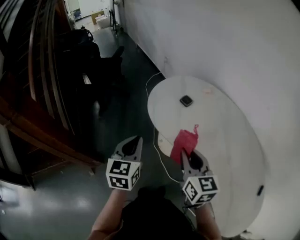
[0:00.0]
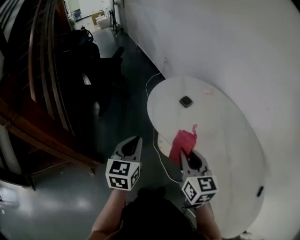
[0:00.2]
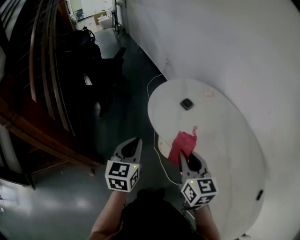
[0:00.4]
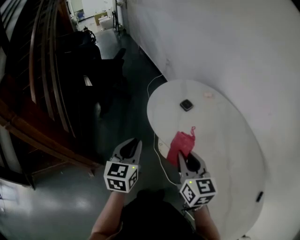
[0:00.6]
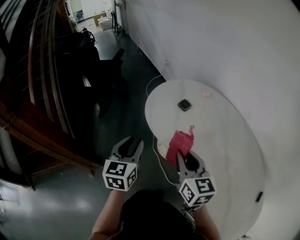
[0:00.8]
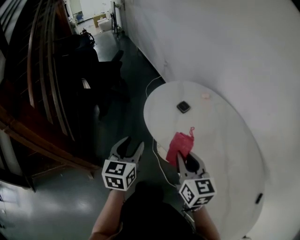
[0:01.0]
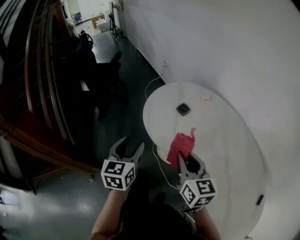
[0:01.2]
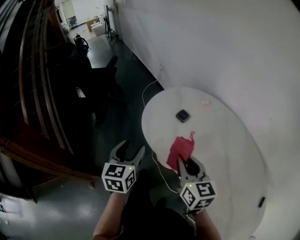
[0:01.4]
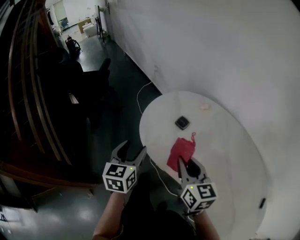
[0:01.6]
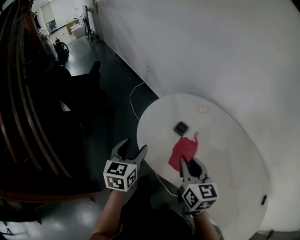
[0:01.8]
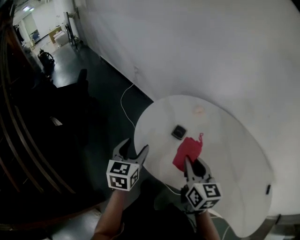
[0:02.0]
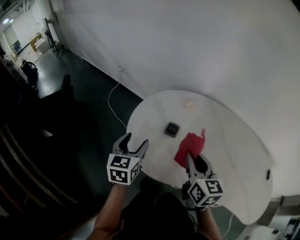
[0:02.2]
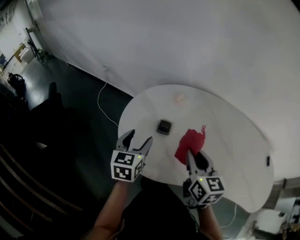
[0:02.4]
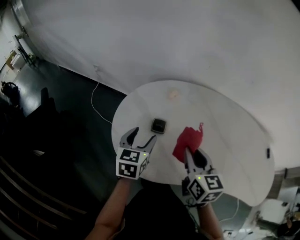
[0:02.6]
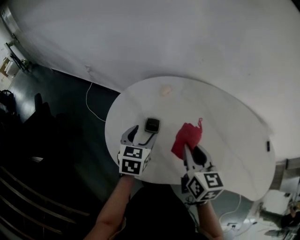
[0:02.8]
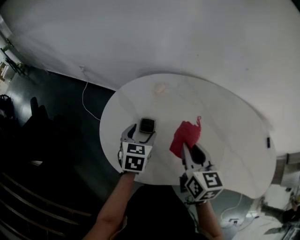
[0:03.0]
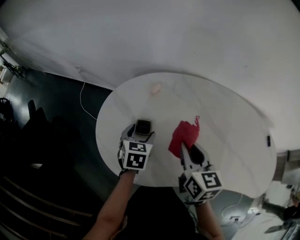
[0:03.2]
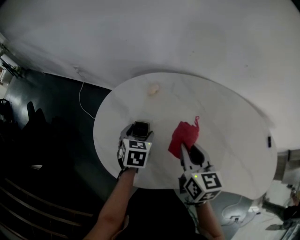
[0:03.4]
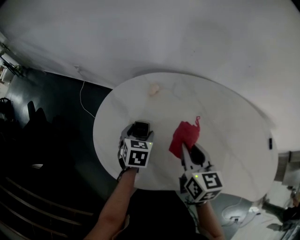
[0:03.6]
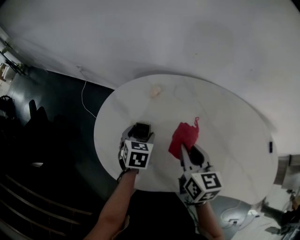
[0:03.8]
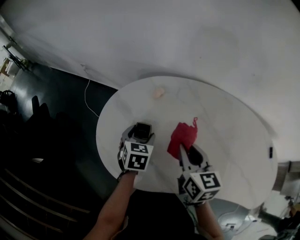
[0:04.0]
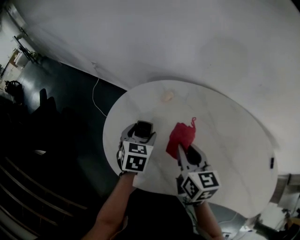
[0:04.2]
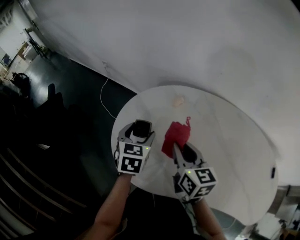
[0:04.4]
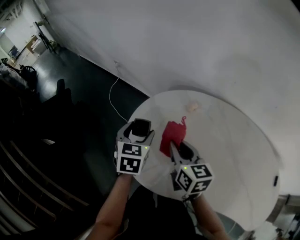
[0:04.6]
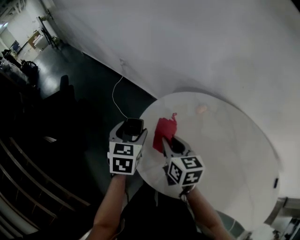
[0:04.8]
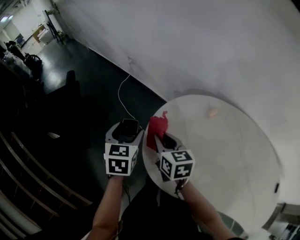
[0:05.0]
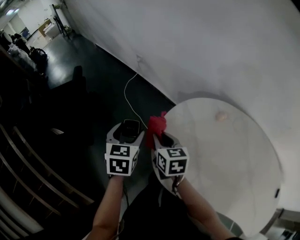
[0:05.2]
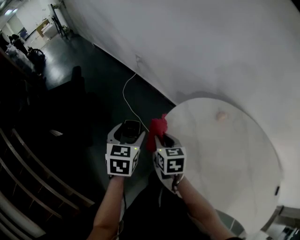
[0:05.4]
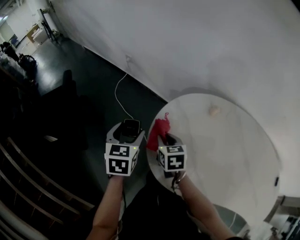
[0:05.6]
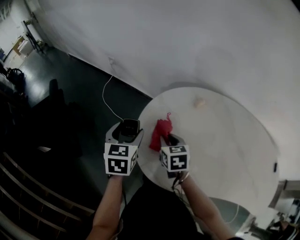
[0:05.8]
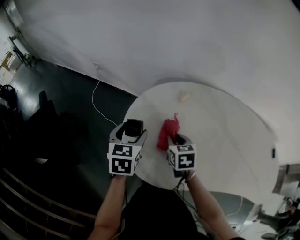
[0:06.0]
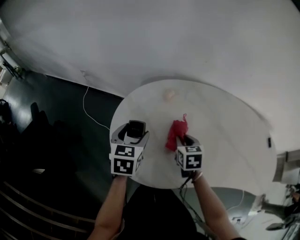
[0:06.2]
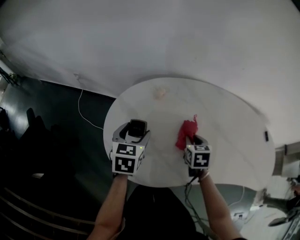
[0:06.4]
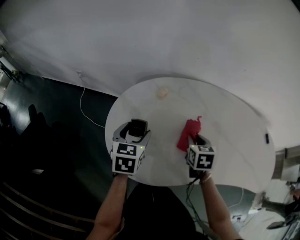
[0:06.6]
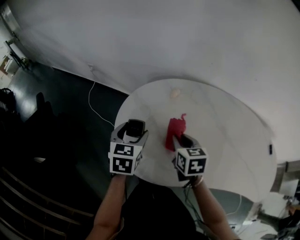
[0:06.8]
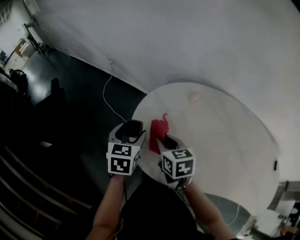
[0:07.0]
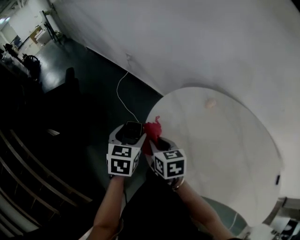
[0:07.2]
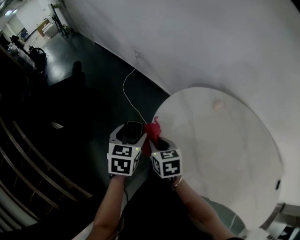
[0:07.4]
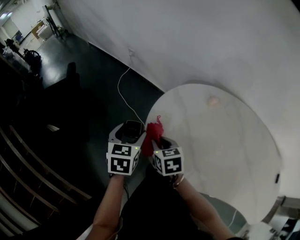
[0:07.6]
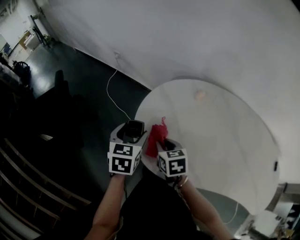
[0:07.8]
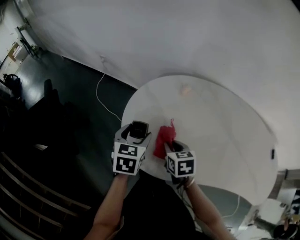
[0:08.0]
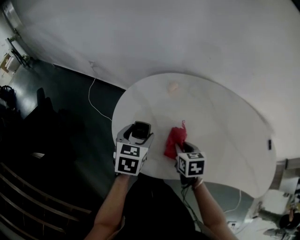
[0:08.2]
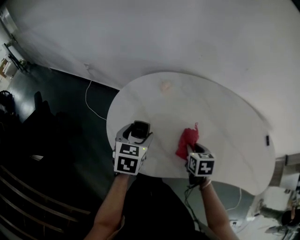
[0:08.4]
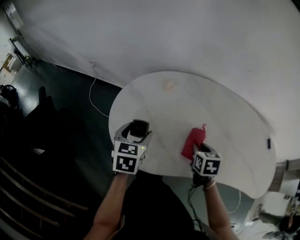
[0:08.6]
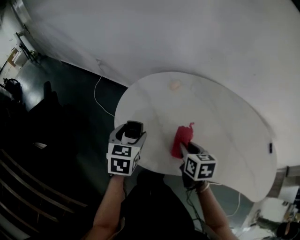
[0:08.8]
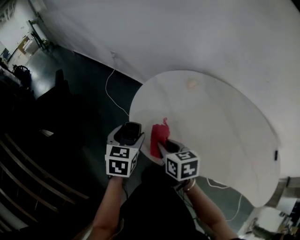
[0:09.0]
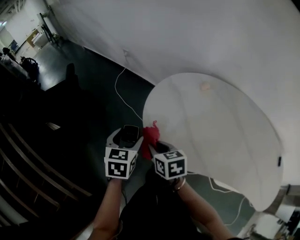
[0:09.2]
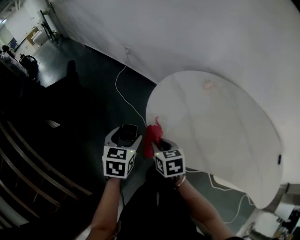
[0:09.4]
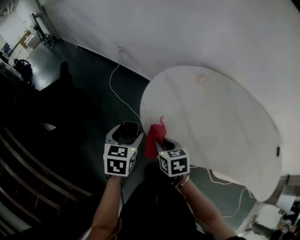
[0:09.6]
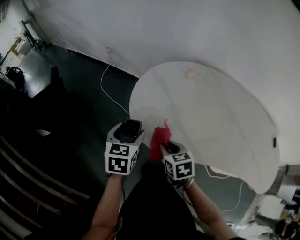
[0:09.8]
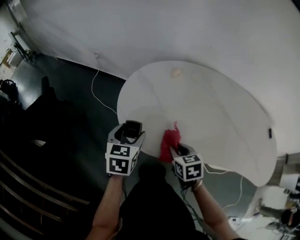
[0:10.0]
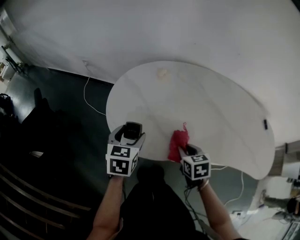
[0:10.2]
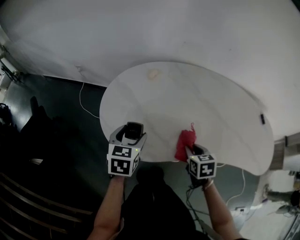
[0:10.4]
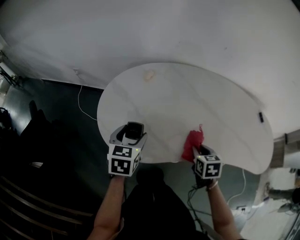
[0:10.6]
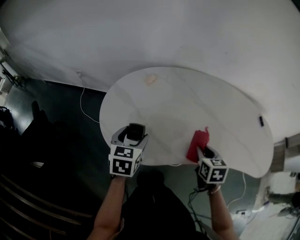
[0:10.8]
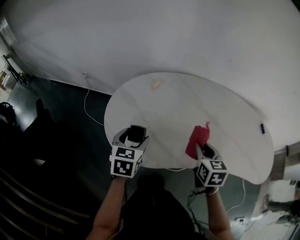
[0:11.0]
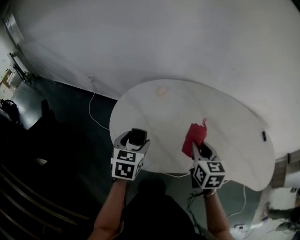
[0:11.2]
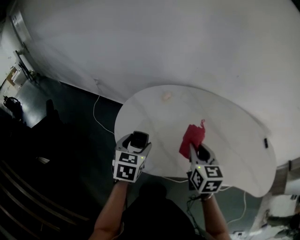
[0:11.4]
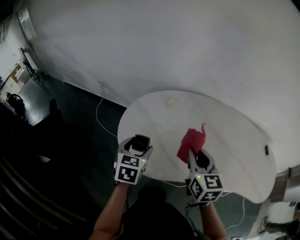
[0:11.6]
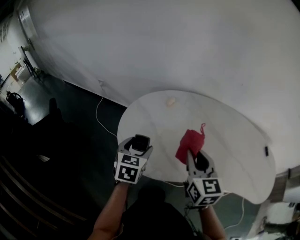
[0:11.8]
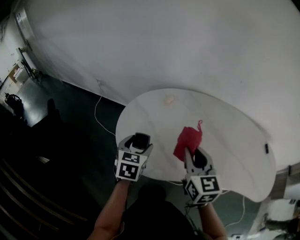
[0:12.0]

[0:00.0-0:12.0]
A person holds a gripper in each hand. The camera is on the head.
0.0 to 1.6 s: Both grippers move forward, approximately 15 cm. The left gripper opens its fingers.
1.6 to 3.0 s: The left gripper moves about 25 cm, and turns by approximately 40 degrees. Meanwhile the right gripper moves approximately 15 cm, and swivels about 40 degrees.
3.0 to 4.4 s: The left gripper shifts approximately 5 cm to the left. The right gripper heads to the left and forward, covering approximately 10 cm.
4.4 to 6.0 s: The right gripper heads downward, covering approximately 10 cm, and turns by approximately 30 degrees.
6.0 to 7.6 s: The left gripper ends up about 15 cm from where it was. The right gripper ends up some 20 cm from where it was, and rotates approximately 20 degrees.
9.0 to 10.4 s: The left gripper changes place by some 10 cm, while the right gripper shifts by approximately 25 cm, and rotates roughly 30 degrees.
10.4 to 12.0 s: The right gripper moves upward and to the left, some 20 cm, and angles its fingers upward, by approximately 40 degrees.

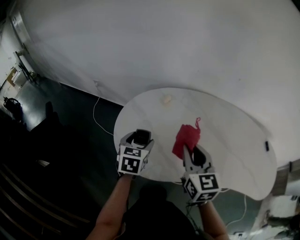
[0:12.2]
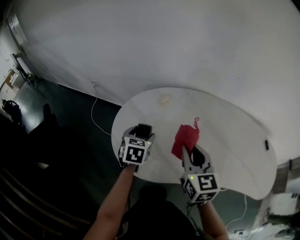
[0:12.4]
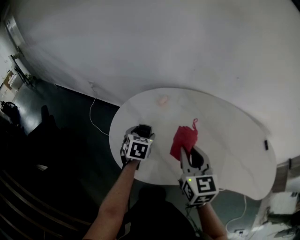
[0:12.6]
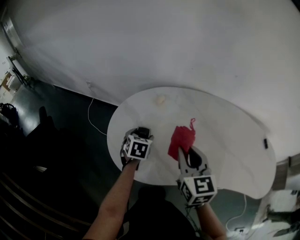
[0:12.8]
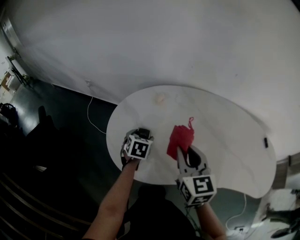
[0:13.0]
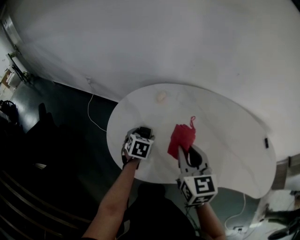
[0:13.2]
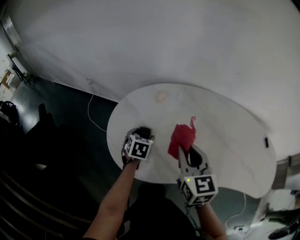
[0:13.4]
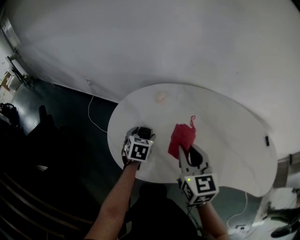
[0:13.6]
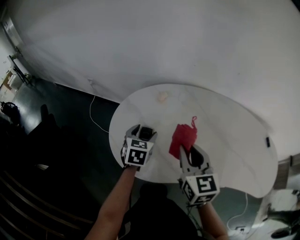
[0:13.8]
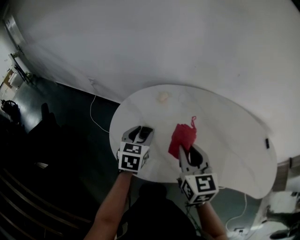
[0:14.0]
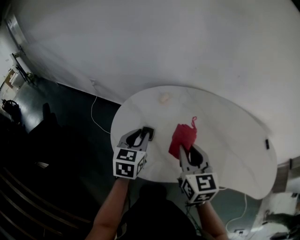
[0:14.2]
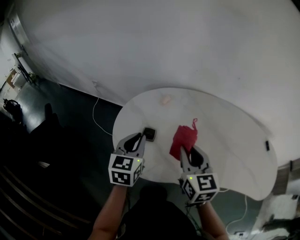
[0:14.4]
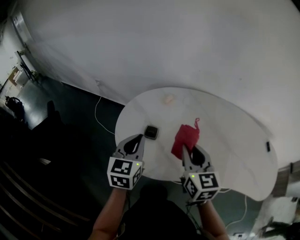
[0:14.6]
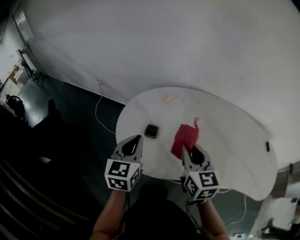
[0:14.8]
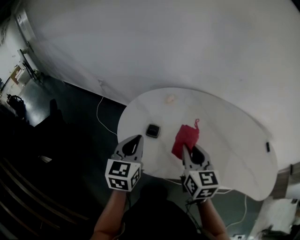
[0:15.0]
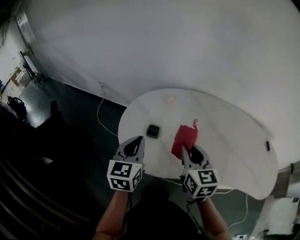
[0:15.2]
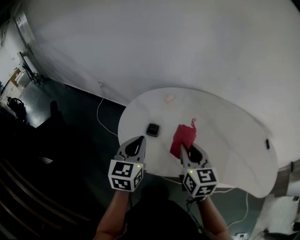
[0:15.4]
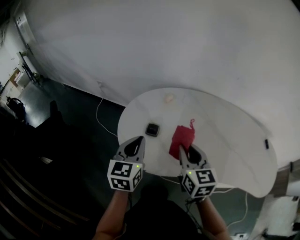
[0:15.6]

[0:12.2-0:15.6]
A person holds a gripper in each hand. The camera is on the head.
12.2 to 13.8 s: The left gripper moves about 10 cm downward and comes back.
13.8 to 15.6 s: The left gripper heads upward and backward, covering roughly 15 cm, changes its angle by approximately 20 degrees, and closes its fingers.

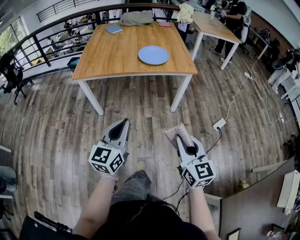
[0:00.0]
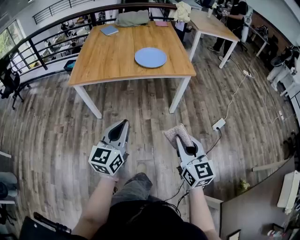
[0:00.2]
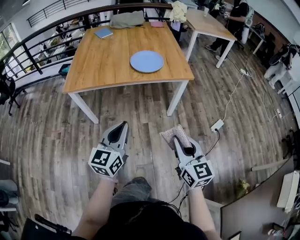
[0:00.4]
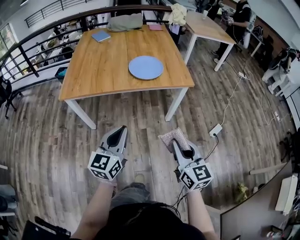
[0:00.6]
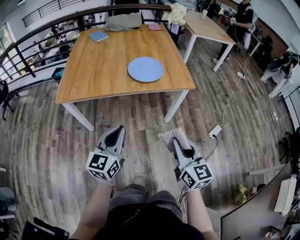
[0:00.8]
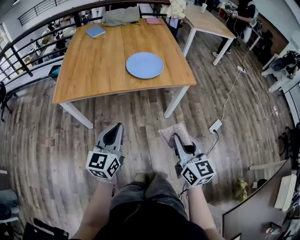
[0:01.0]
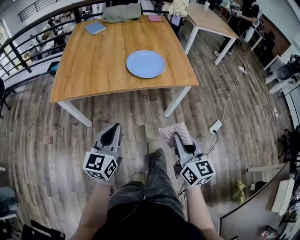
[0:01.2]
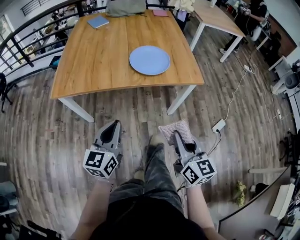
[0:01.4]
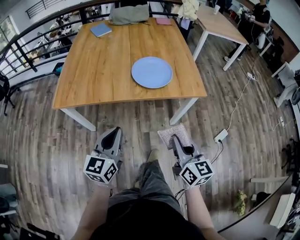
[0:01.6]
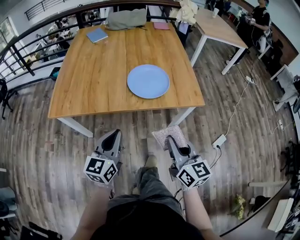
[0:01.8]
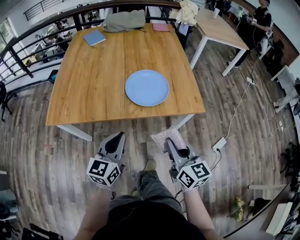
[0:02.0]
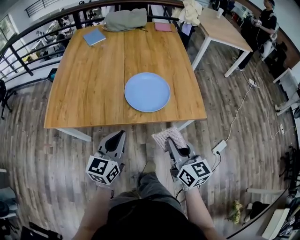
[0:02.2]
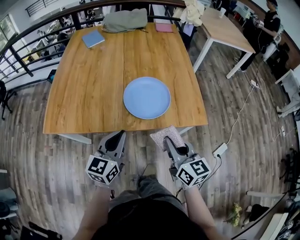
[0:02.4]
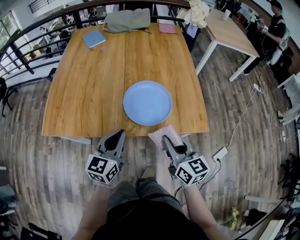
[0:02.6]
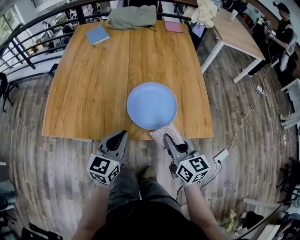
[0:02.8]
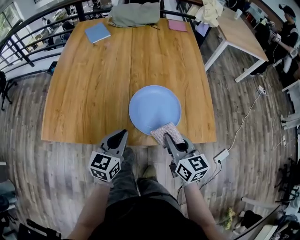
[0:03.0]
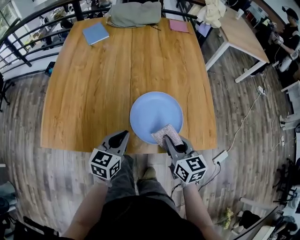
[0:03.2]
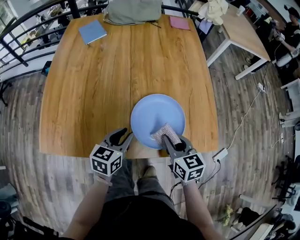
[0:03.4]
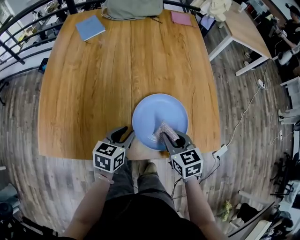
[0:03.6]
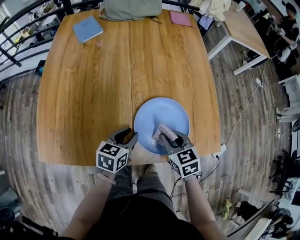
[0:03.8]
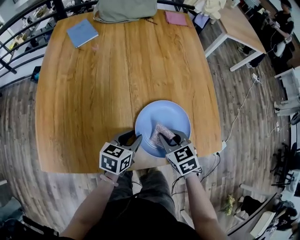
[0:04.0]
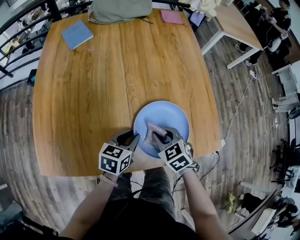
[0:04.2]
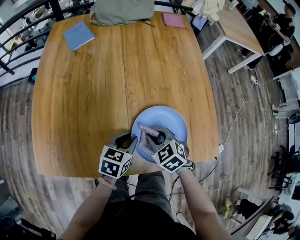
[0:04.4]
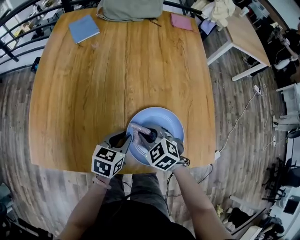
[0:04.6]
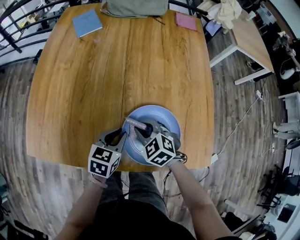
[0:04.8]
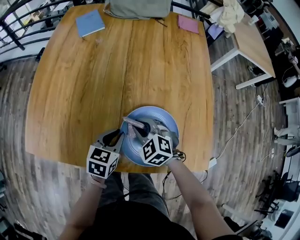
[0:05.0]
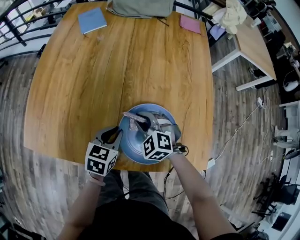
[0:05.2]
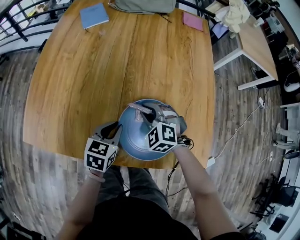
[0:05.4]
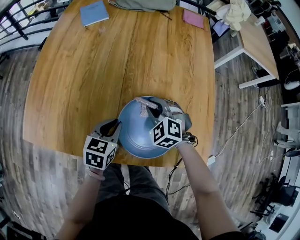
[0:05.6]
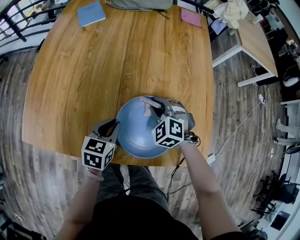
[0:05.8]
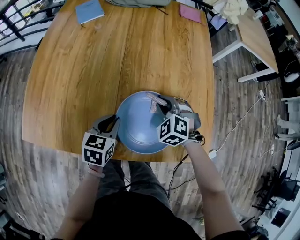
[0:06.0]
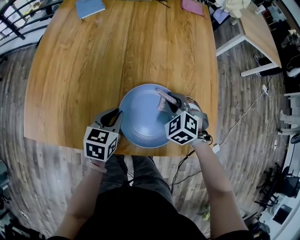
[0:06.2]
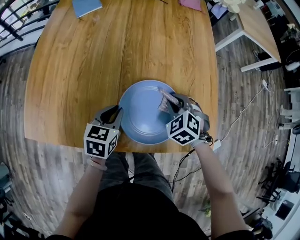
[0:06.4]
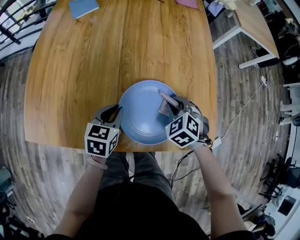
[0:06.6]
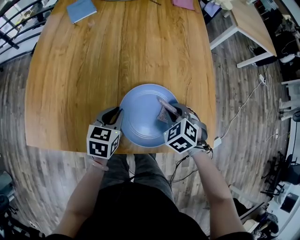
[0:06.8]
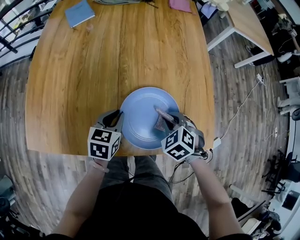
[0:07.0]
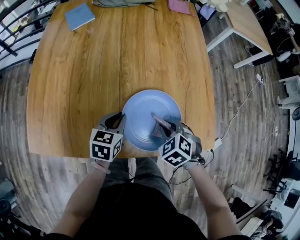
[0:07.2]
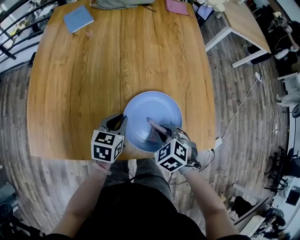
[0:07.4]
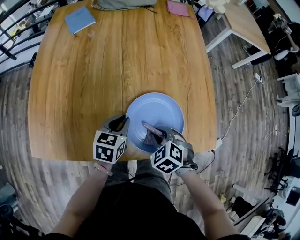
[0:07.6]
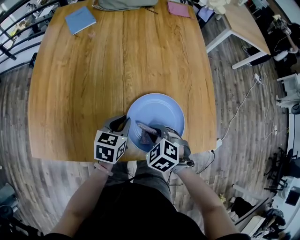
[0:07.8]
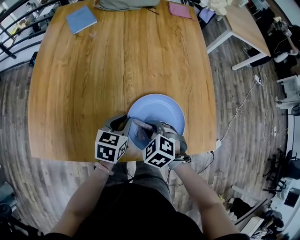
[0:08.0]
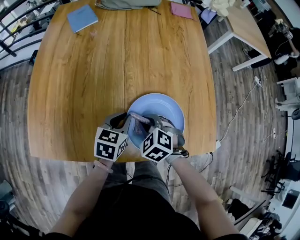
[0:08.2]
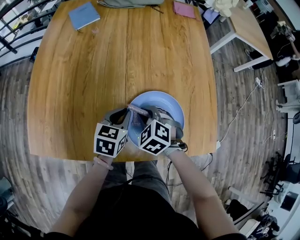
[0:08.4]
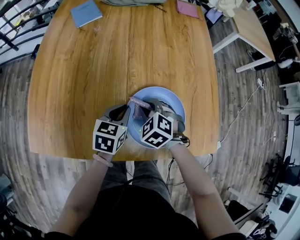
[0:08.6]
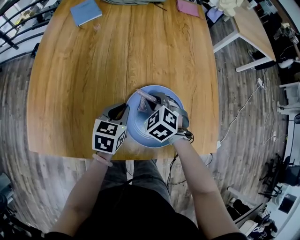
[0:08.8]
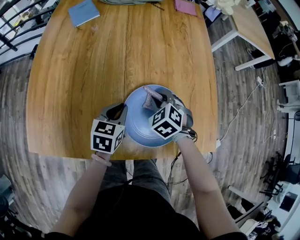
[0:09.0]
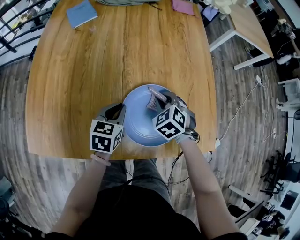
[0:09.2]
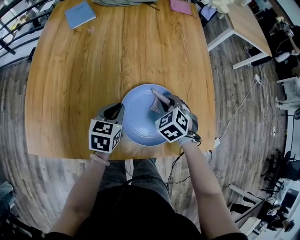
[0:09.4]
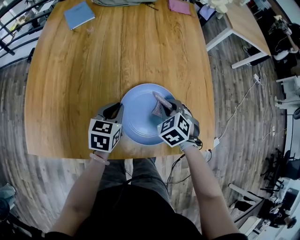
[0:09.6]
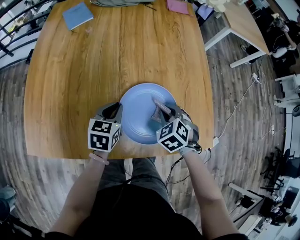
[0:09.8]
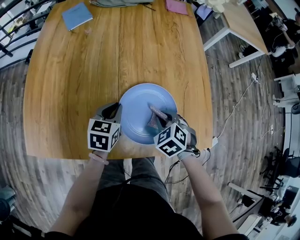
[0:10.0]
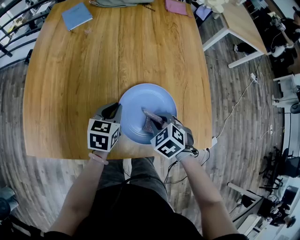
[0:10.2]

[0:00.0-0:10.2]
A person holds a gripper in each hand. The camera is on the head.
0.0 to 1.4 s: Both grippers move forward, some 25 cm.
1.4 to 3.0 s: Both grippers travel together forward, approximately 30 cm.
3.0 to 4.4 s: The left gripper shifts approximately 15 cm forward and downward, turns by approximately 30 degrees, and opens up; the right gripper shifts some 20 cm forward, downward and to the left, and points its fingers roughly 30 degrees further downward.
4.4 to 5.8 s: The right gripper moves forward and to the right, approximately 10 cm, and swivels roughly 40 degrees.
5.8 to 7.2 s: The right gripper travels backward and to the right by some 15 cm, and swivels about 30 degrees.
7.2 to 8.8 s: The right gripper travels forward and to the left by roughly 15 cm.
8.8 to 10.2 s: The right gripper shifts roughly 10 cm backward and to the right.
